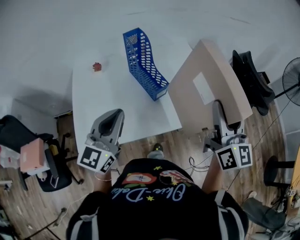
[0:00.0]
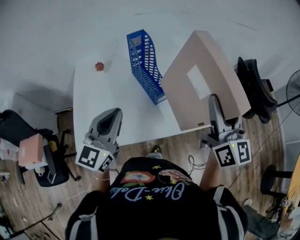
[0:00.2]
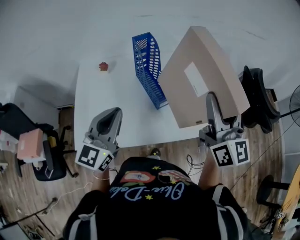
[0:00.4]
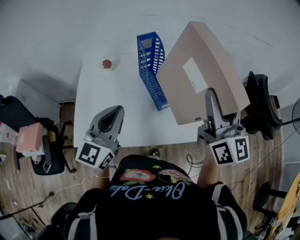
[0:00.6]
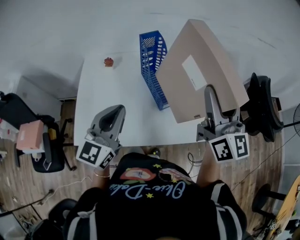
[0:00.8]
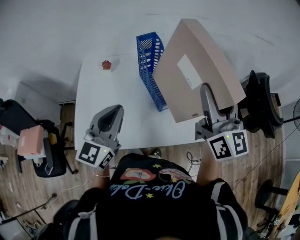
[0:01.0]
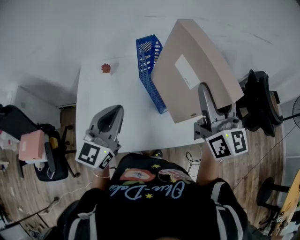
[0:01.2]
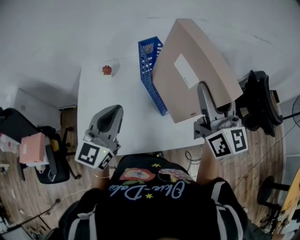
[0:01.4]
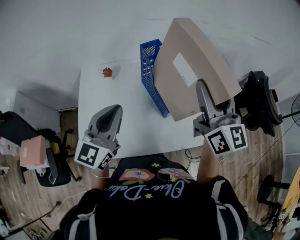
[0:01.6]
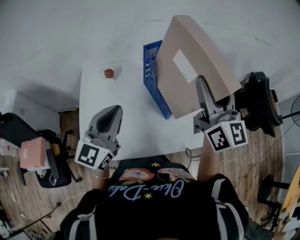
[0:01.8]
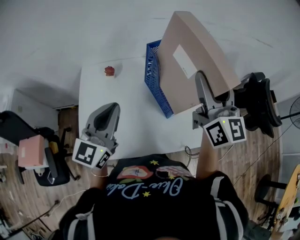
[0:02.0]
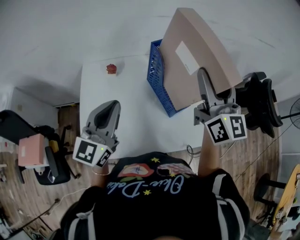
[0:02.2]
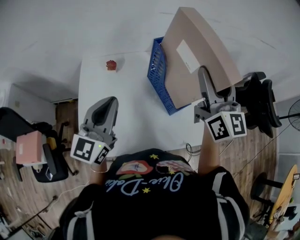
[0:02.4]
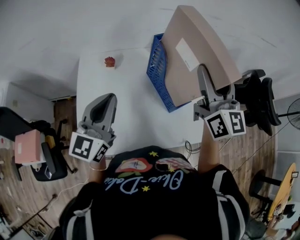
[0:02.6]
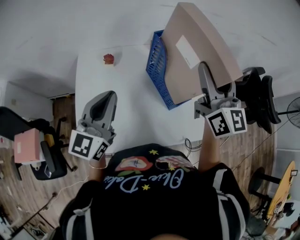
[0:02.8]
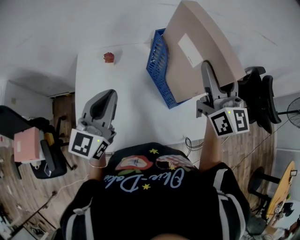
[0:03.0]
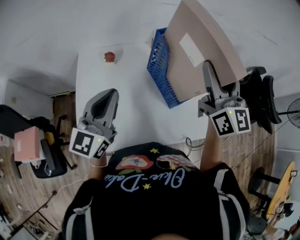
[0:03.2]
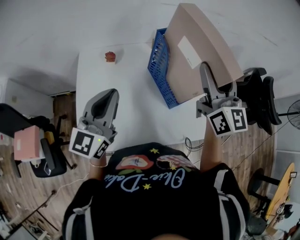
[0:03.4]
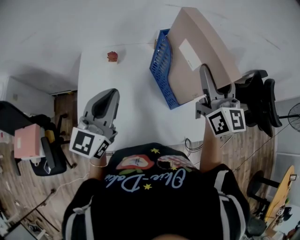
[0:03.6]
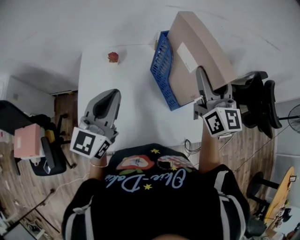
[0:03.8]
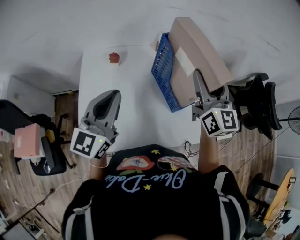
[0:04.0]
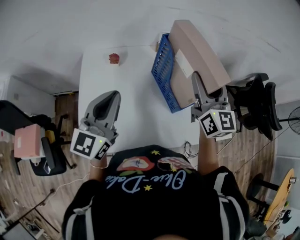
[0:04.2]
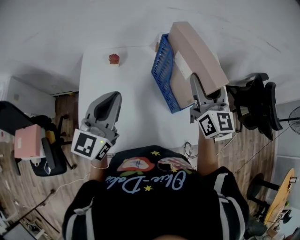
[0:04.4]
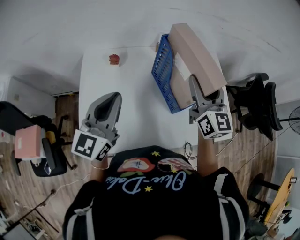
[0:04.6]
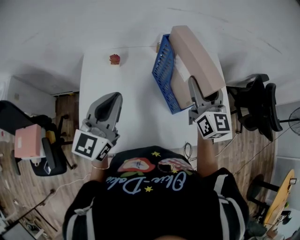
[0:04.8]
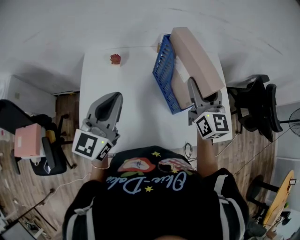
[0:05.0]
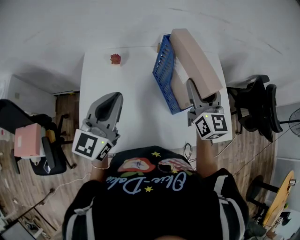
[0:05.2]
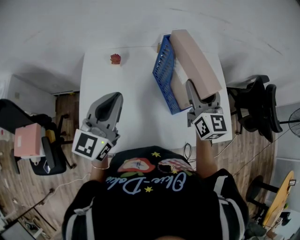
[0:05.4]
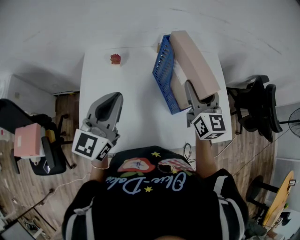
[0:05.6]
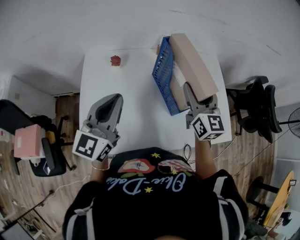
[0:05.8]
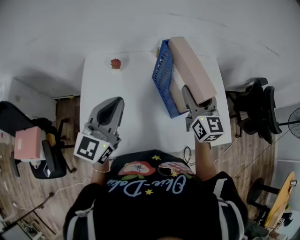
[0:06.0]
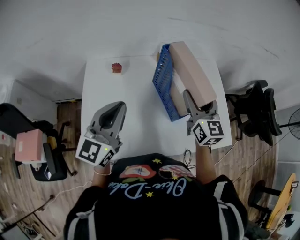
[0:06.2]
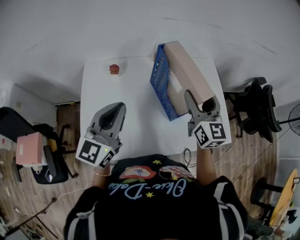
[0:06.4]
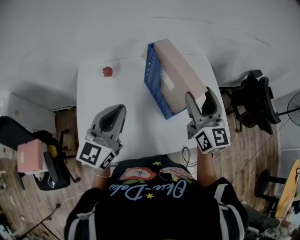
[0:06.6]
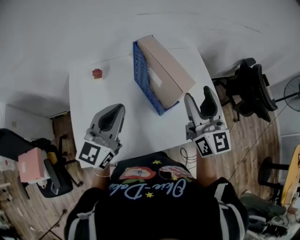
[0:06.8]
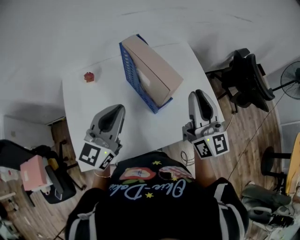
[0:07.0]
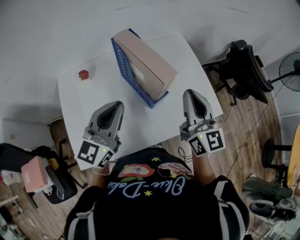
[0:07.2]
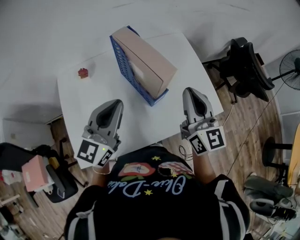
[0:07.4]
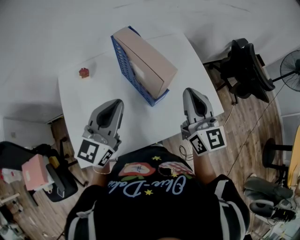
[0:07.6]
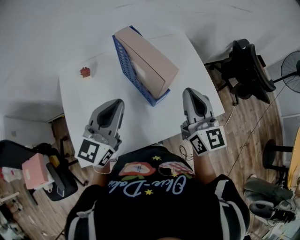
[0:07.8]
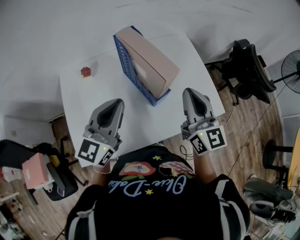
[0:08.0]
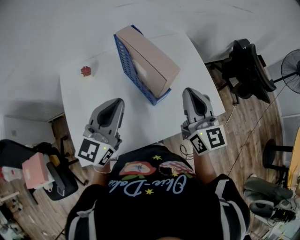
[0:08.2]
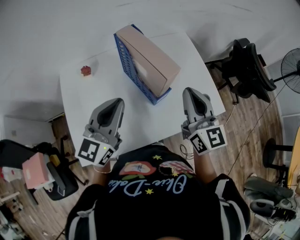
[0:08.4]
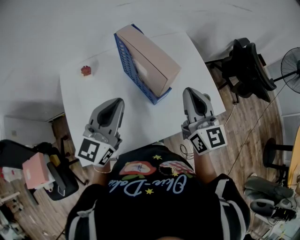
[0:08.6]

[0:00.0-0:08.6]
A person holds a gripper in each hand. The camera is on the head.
0:00.0 to 0:01.4: The left gripper goes some 10 cm forward; the right gripper travels forward and to the left by some 20 cm.
0:01.4 to 0:02.8: The left gripper travels to the left by about 5 cm. Meanwhile the right gripper moves to the left and forward, roughly 10 cm.
0:02.8 to 0:04.4: The right gripper goes about 5 cm downward.
0:04.4 to 0:05.8: The right gripper goes some 5 cm downward.
0:05.8 to 0:07.2: The right gripper shifts about 15 cm backward and to the right, and closes its fingers. The left gripper goes about 10 cm to the right.
0:07.2 to 0:08.6: There are only small adjustments of the grippers.

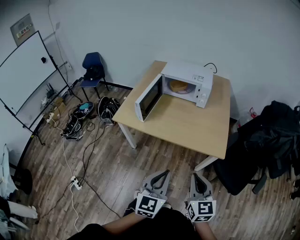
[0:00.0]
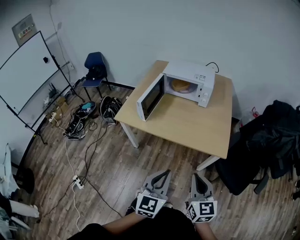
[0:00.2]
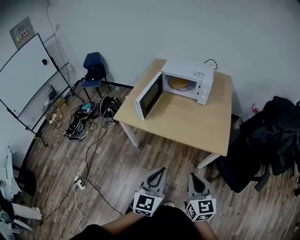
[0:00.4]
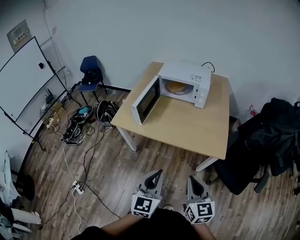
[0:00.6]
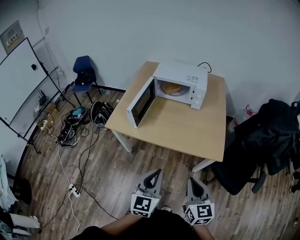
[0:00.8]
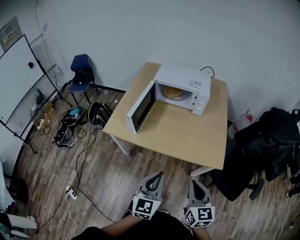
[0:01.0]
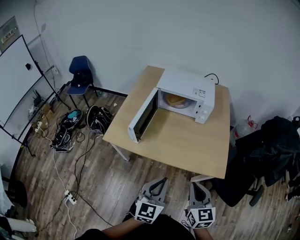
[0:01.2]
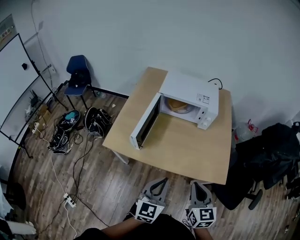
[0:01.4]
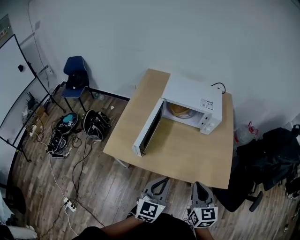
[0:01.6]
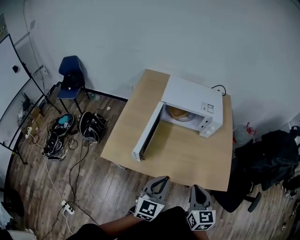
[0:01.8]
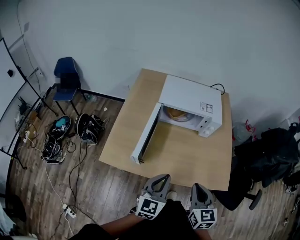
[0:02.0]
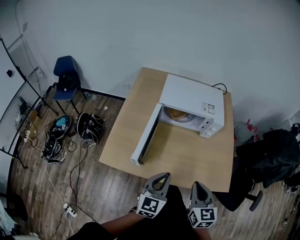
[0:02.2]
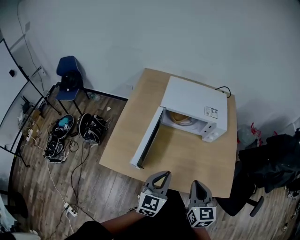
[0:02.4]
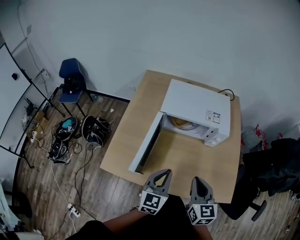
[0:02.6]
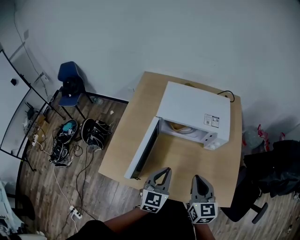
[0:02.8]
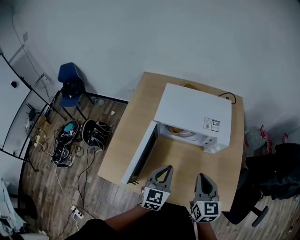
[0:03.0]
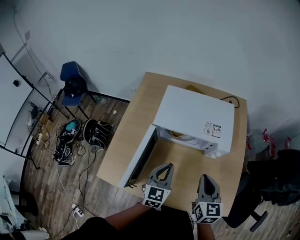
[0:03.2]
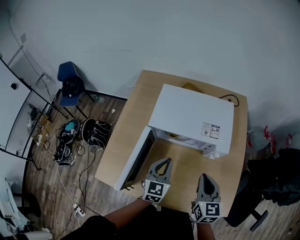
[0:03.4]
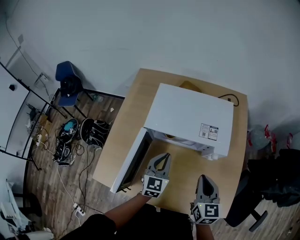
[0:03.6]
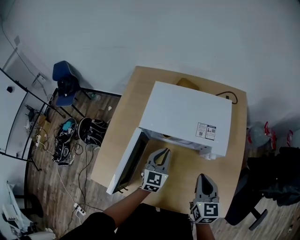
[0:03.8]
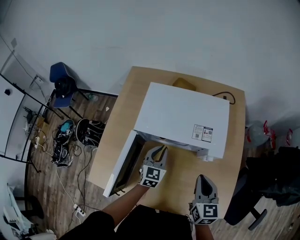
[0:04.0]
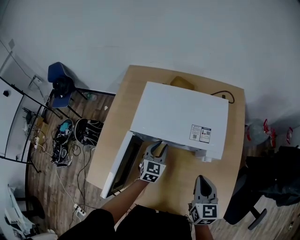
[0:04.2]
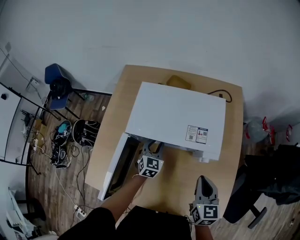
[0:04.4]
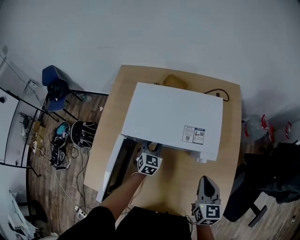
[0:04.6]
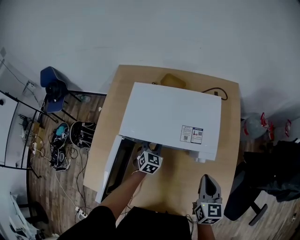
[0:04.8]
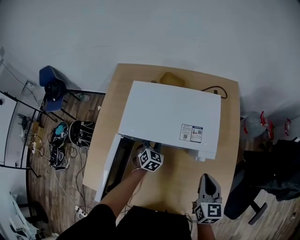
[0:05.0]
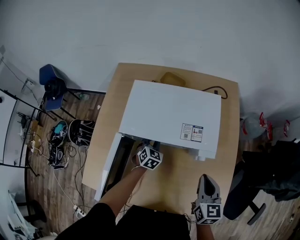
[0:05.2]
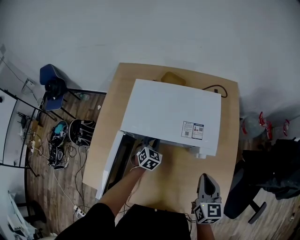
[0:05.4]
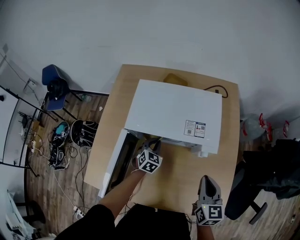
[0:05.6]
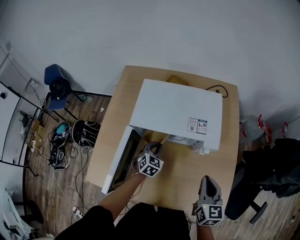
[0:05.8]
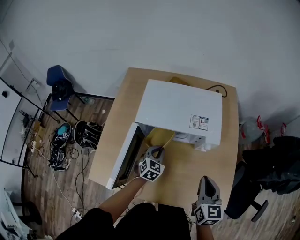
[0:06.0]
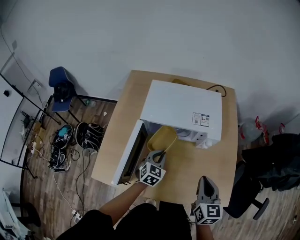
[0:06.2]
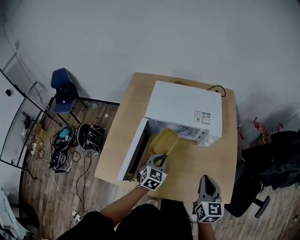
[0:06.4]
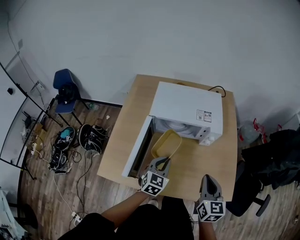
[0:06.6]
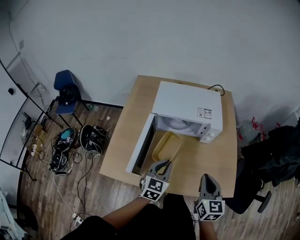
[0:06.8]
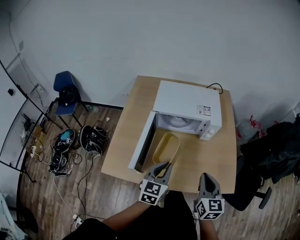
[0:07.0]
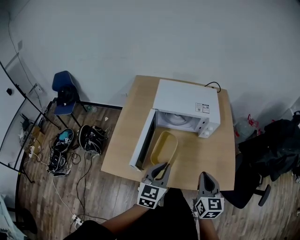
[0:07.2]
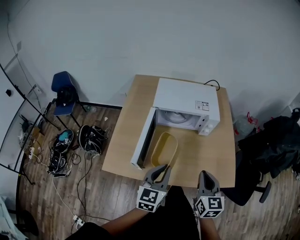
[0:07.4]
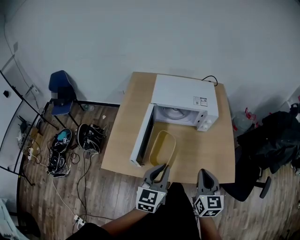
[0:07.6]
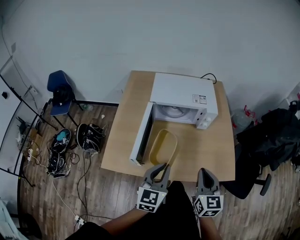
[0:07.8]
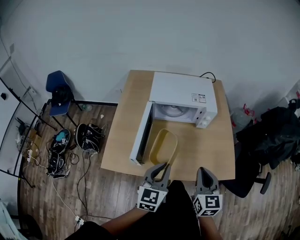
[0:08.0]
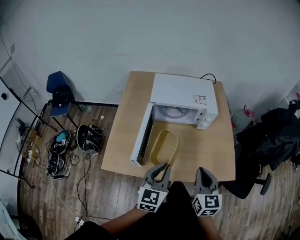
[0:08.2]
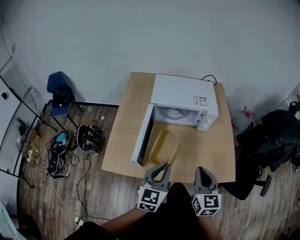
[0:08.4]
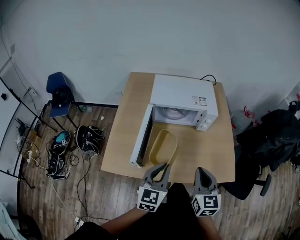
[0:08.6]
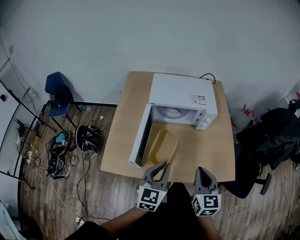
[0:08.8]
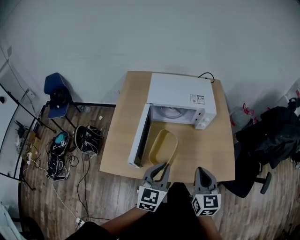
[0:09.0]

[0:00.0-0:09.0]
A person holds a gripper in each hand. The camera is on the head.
0:00.0 to 0:01.6: Both grippers travel together forward, roughly 25 cm.
0:01.6 to 0:03.0: Both grippers move forward, about 25 cm.
0:03.0 to 0:04.4: The left gripper goes some 25 cm forward and downward; the right gripper travels to the right, forward and downward by some 15 cm.
0:04.4 to 0:06.0: The two grippers go roughly 10 cm backward.
0:06.0 to 0:07.6: The left gripper shifts about 35 cm backward and upward, and turns by some 30 degrees. The right gripper goes approximately 20 cm backward.
0:07.6 to 0:09.0: The grippers stay close to where they were, moving slightly.

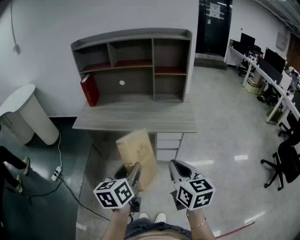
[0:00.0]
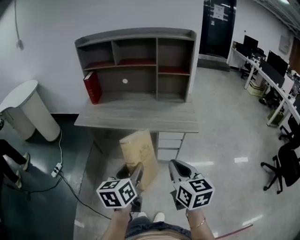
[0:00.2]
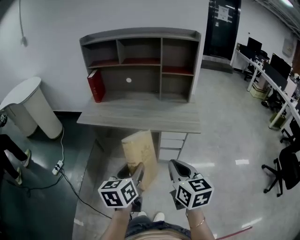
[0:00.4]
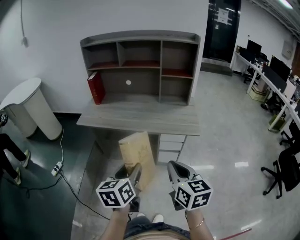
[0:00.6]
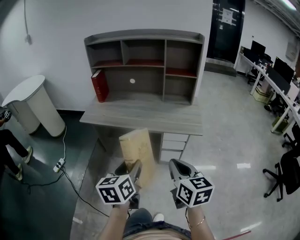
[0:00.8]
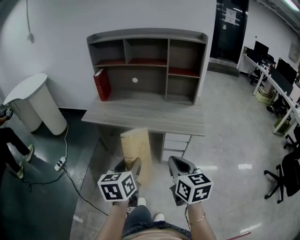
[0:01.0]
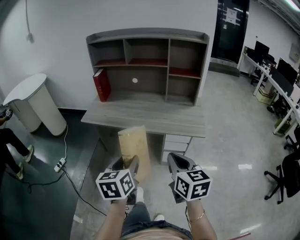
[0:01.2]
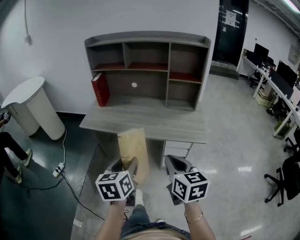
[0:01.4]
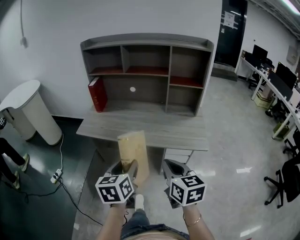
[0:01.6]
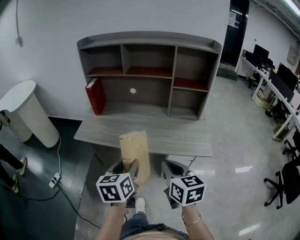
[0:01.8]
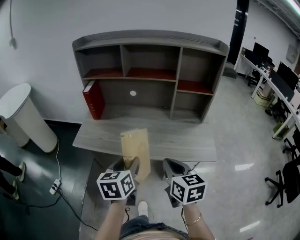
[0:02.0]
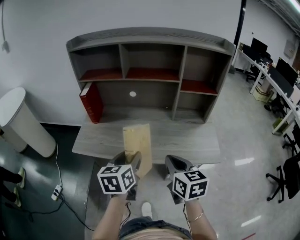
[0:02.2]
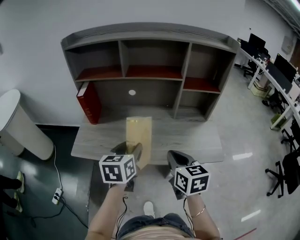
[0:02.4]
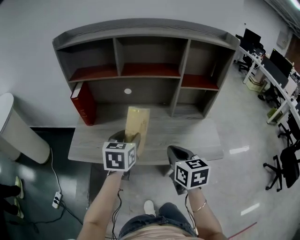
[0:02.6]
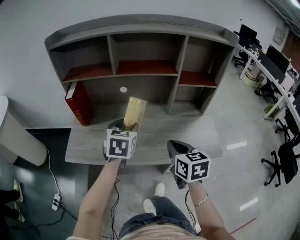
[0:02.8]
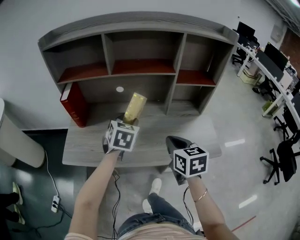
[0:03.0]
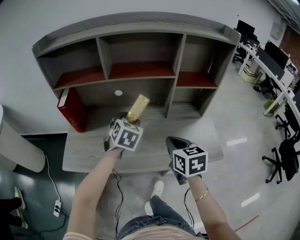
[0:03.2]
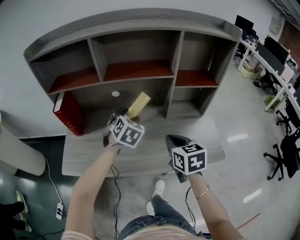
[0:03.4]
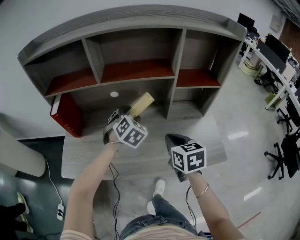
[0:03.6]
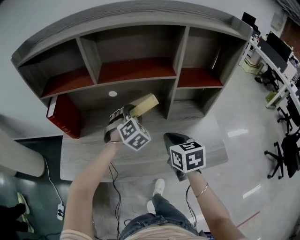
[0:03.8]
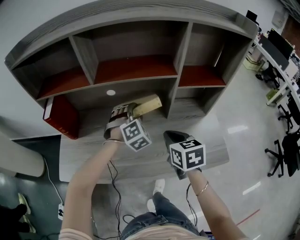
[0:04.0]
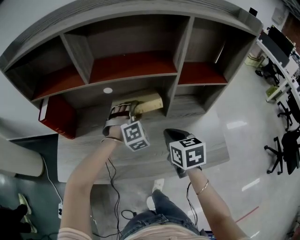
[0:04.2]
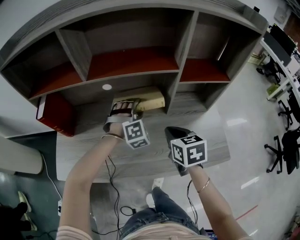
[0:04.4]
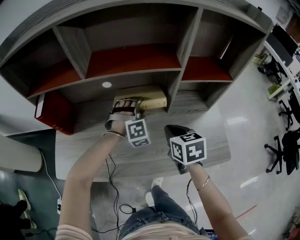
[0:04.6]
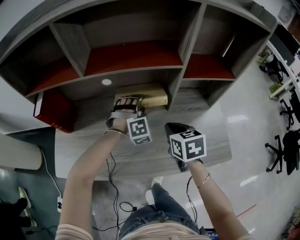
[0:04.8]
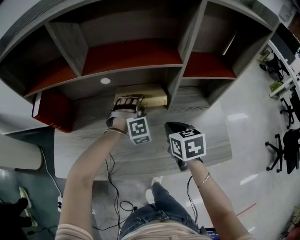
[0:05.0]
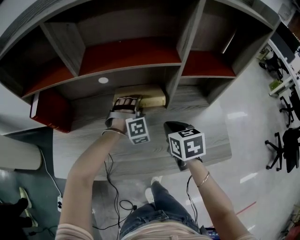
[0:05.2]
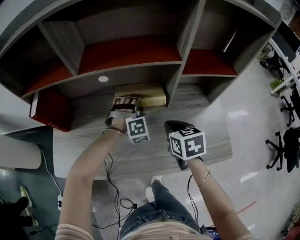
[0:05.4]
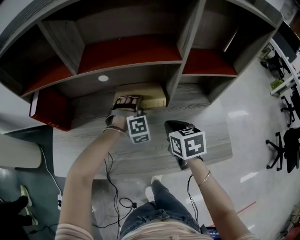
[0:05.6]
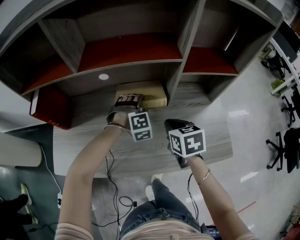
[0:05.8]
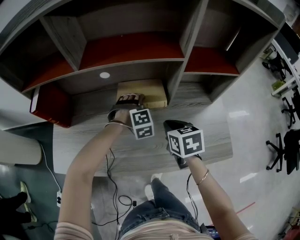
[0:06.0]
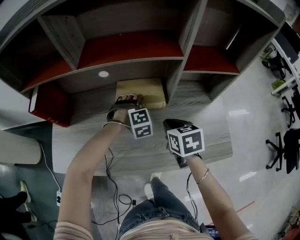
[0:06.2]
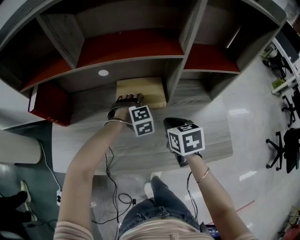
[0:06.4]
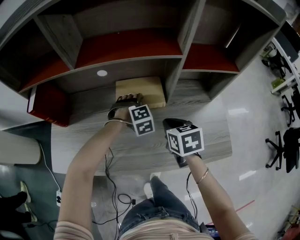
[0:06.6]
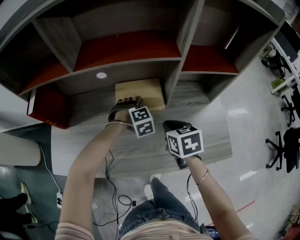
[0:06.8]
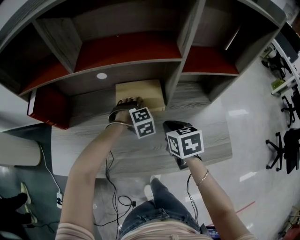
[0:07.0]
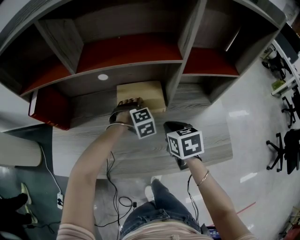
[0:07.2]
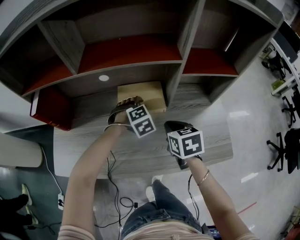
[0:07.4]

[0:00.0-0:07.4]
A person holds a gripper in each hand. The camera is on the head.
0:00.0 to 0:01.4: The grippers both shift forward by approximately 5 cm.
0:01.4 to 0:03.0: Both grippers travel together forward, approximately 40 cm. The left gripper changes its angle by about 40 degrees.
0:03.0 to 0:04.4: The right gripper goes roughly 15 cm forward and downward, while the left gripper heads forward, to the right and downward, covering approximately 20 cm, and twists roughly 60 degrees clockwise, seen from behind.
0:04.4 to 0:06.0: The left gripper shifts roughly 10 cm downward.
0:06.0 to 0:07.4: There are only small adjustments of the grippers.
